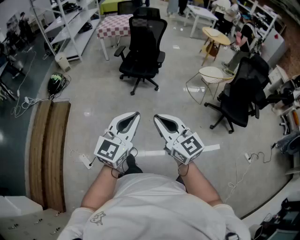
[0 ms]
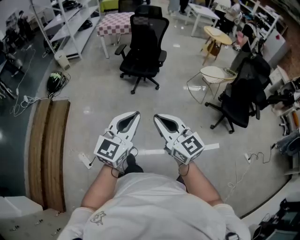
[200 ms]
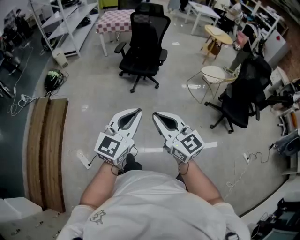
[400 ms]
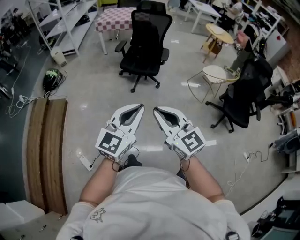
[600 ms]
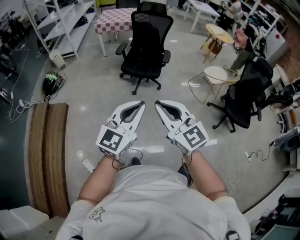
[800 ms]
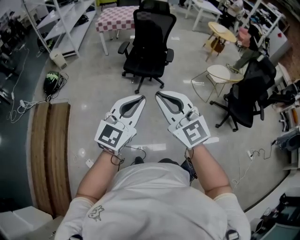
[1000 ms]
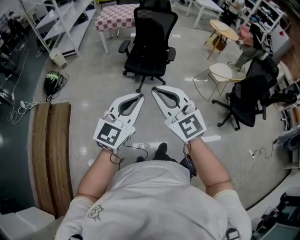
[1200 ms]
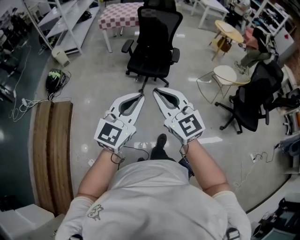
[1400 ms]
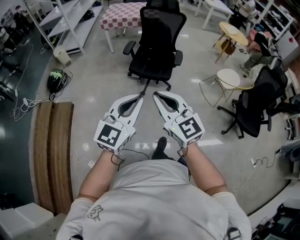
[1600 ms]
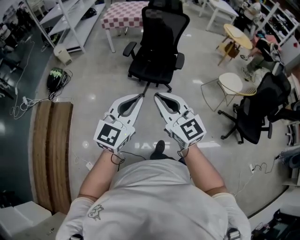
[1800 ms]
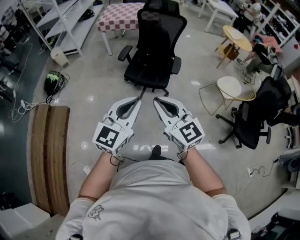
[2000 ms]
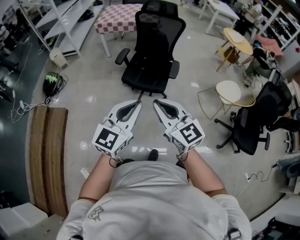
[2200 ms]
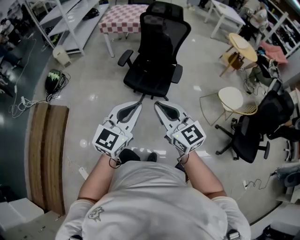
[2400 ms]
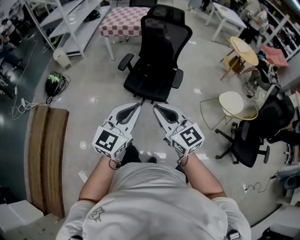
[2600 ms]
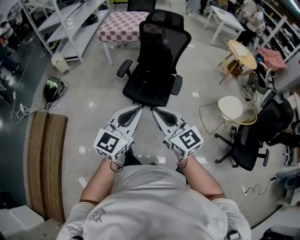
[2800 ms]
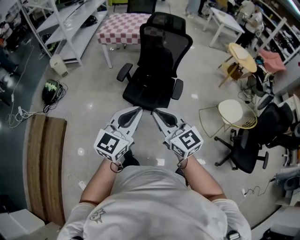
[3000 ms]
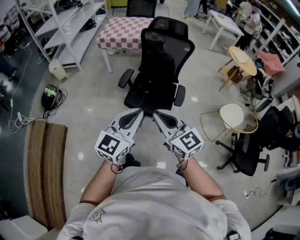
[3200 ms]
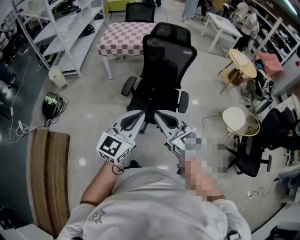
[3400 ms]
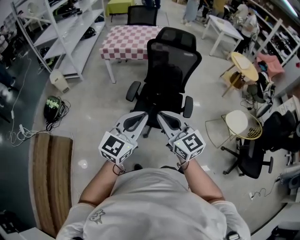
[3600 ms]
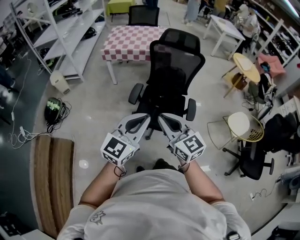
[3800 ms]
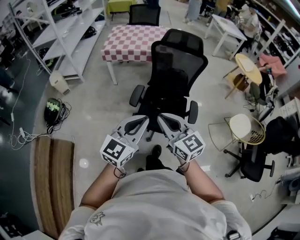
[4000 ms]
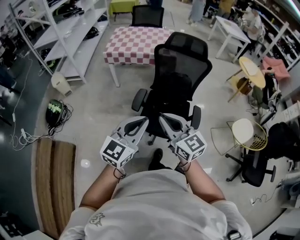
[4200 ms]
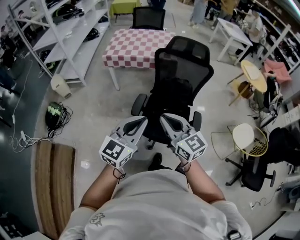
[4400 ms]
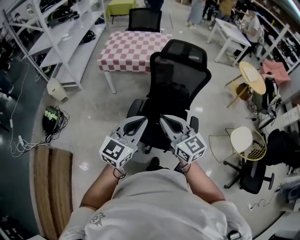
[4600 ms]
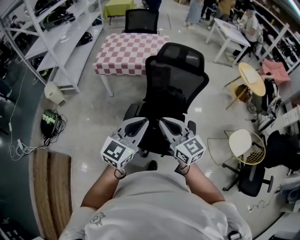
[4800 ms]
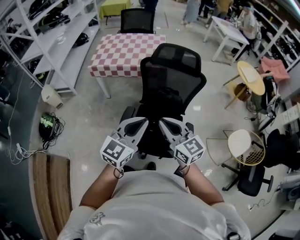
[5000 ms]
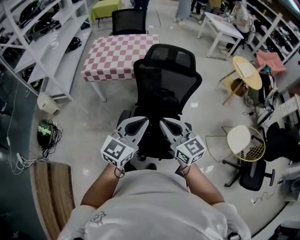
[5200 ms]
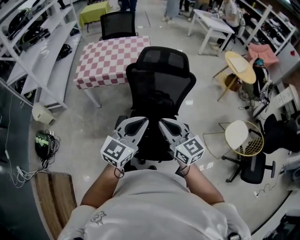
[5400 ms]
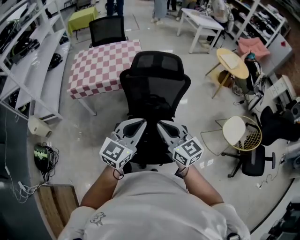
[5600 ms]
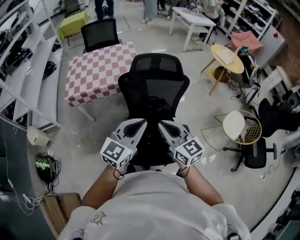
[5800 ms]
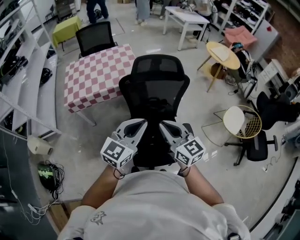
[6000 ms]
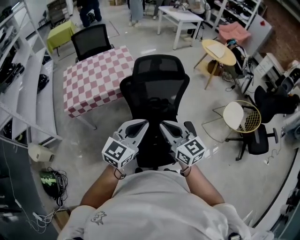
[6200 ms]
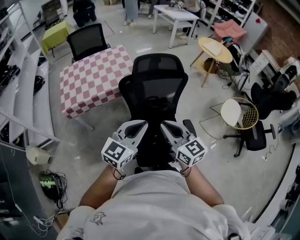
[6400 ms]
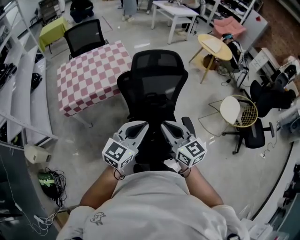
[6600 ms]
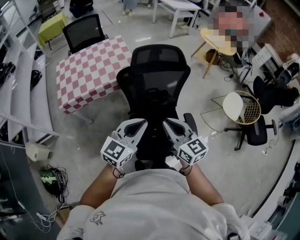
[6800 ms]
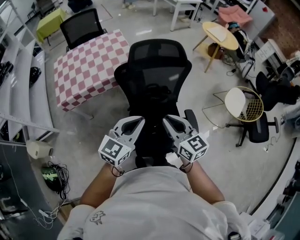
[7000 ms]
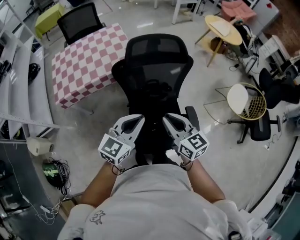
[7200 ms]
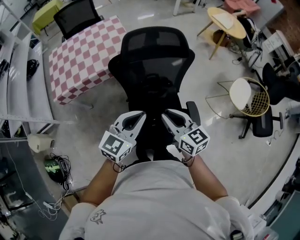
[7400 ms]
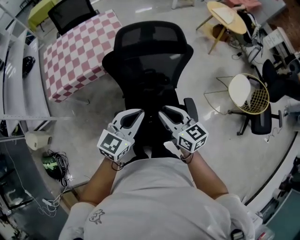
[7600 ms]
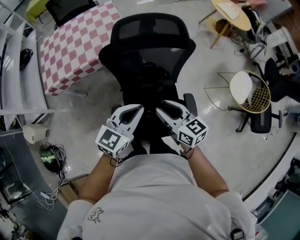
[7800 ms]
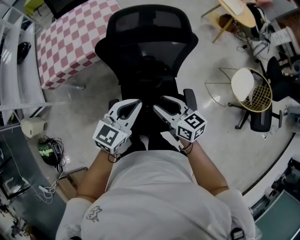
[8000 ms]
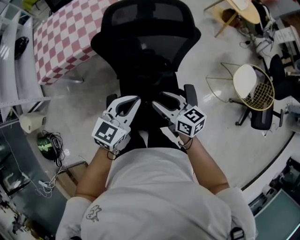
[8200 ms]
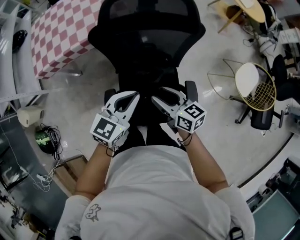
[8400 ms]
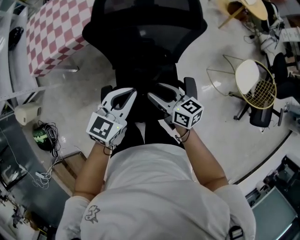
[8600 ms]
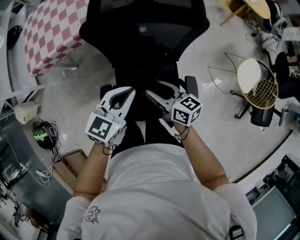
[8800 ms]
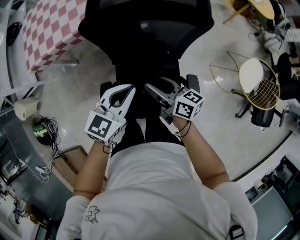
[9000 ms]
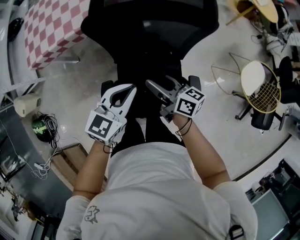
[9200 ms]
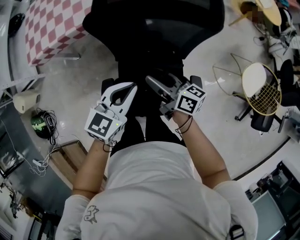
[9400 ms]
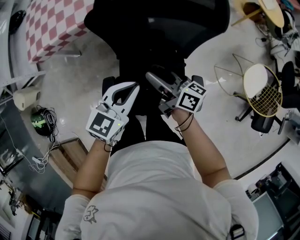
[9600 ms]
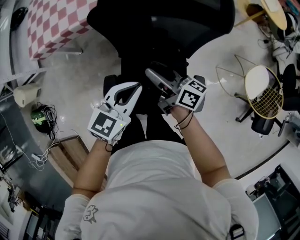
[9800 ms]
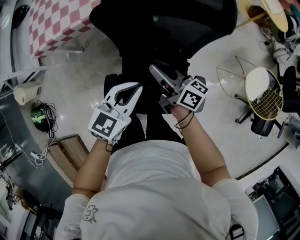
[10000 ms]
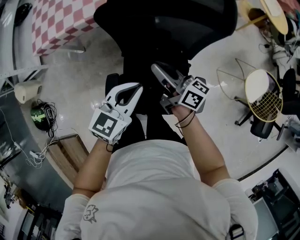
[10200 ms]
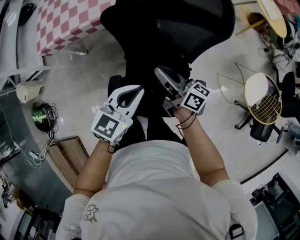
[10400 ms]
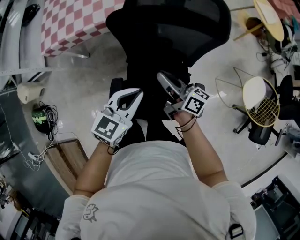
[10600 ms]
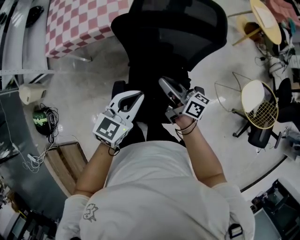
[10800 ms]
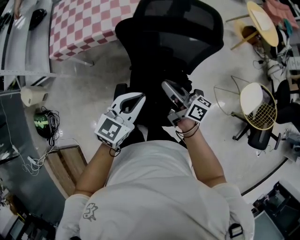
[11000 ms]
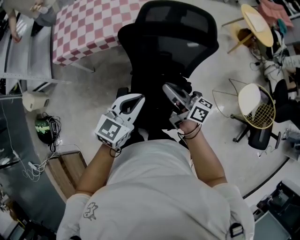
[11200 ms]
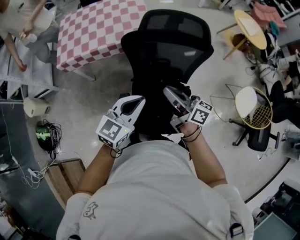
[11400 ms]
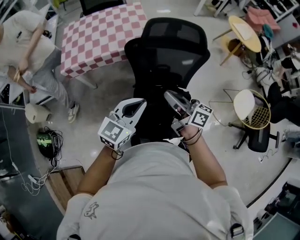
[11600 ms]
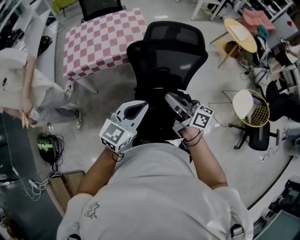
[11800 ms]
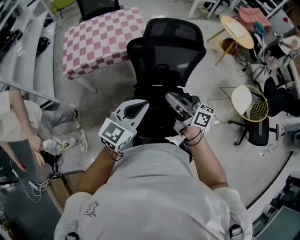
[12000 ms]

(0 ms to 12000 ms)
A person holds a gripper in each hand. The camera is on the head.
0 ms - 1600 ms: Both grippers move forward, approximately 30 cm.
1600 ms - 3000 ms: Both grippers move forward, roughly 30 cm.
3000 ms - 4400 ms: Both grippers move forward and to the left, roughly 35 cm.
4400 ms - 6000 ms: Both grippers travel together forward, some 25 cm. The right gripper rotates roughly 20 degrees. Meanwhile the left gripper turns by some 30 degrees.
6000 ms - 7600 ms: The grippers both shift downward and forward by some 15 cm.
7600 ms - 9000 ms: Both grippers travel together downward and forward, some 15 cm. The right gripper rotates approximately 30 degrees, and opens.
9000 ms - 10400 ms: The right gripper ends up approximately 5 cm from where it was, and closes its fingers.
10400 ms - 12000 ms: The right gripper travels backward and upward by roughly 25 cm. The left gripper is displaced upward, backward and to the left by approximately 25 cm.

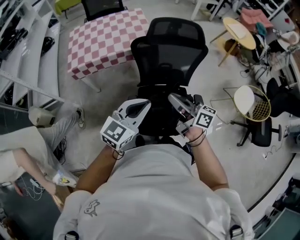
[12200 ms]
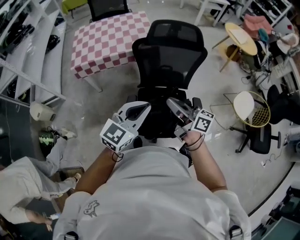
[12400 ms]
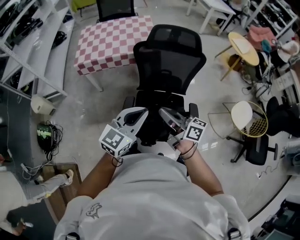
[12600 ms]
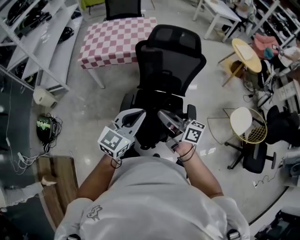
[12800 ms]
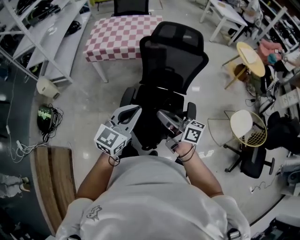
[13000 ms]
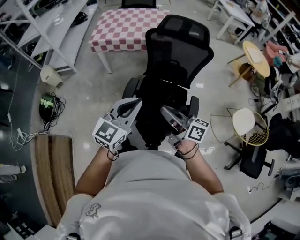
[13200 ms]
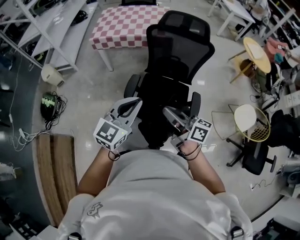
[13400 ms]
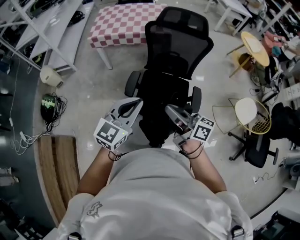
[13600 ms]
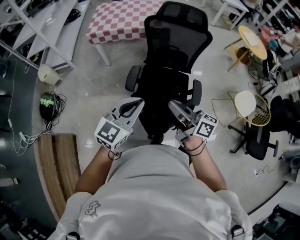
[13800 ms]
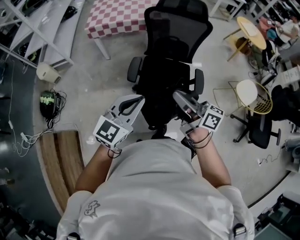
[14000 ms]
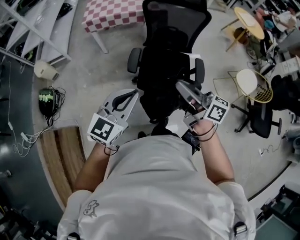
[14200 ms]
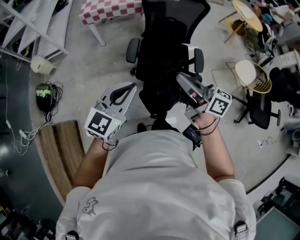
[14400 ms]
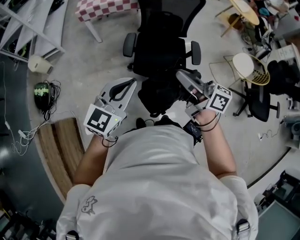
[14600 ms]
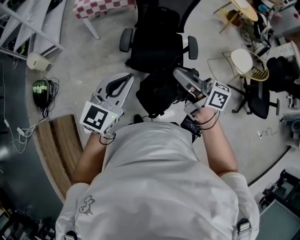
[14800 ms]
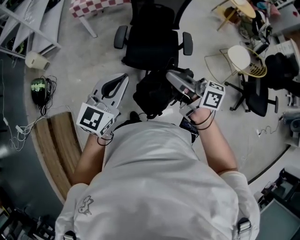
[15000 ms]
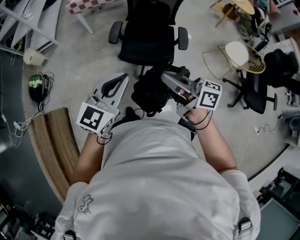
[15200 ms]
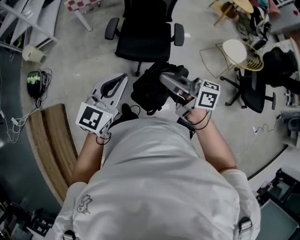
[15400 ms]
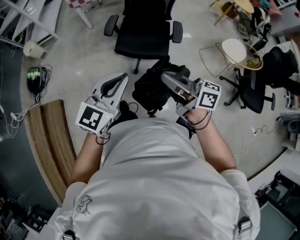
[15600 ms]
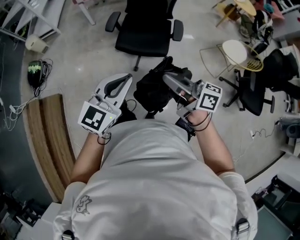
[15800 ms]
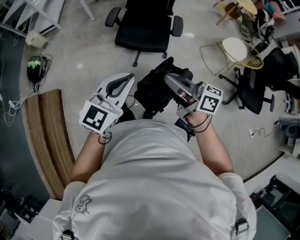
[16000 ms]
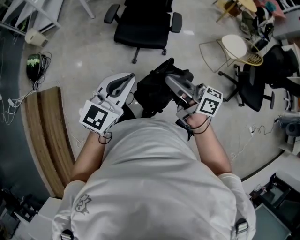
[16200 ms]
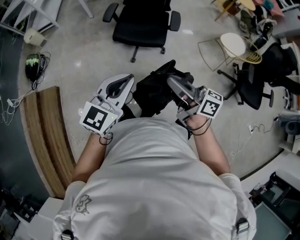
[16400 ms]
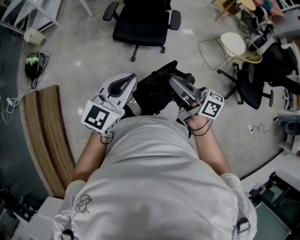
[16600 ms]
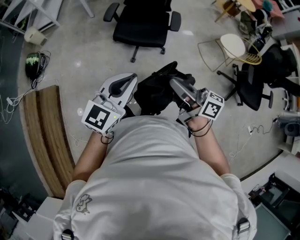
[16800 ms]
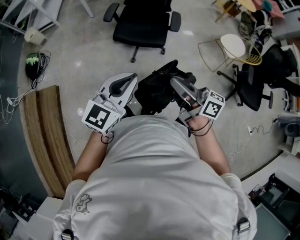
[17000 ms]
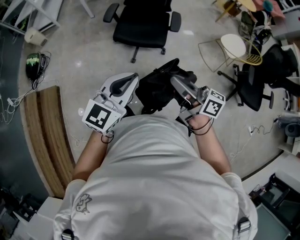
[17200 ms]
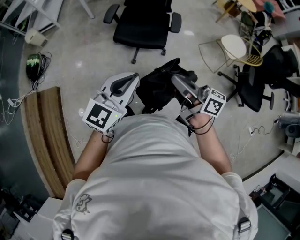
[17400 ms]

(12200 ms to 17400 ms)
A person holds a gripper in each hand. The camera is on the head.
12200 ms - 14000 ms: The grippers both shift backward by roughly 30 cm.
14000 ms - 15600 ms: The two grippers go approximately 25 cm backward.
15600 ms - 17400 ms: The grippers both shift backward and to the right by roughly 10 cm.

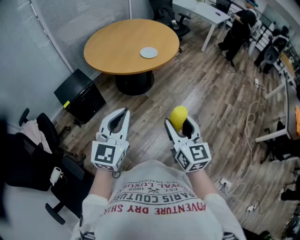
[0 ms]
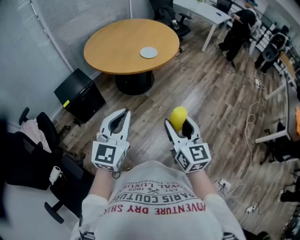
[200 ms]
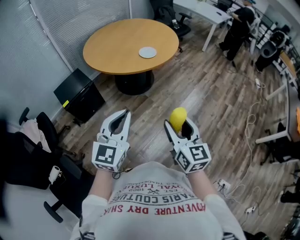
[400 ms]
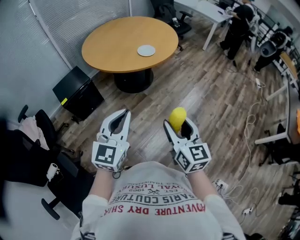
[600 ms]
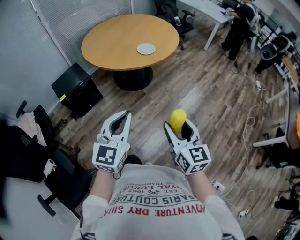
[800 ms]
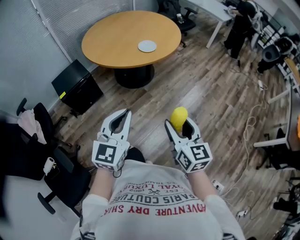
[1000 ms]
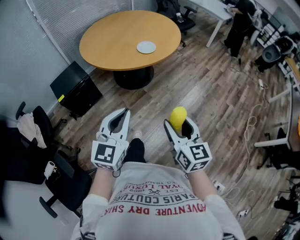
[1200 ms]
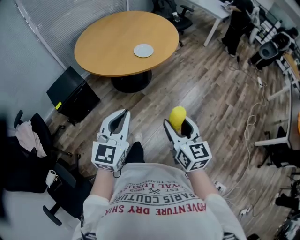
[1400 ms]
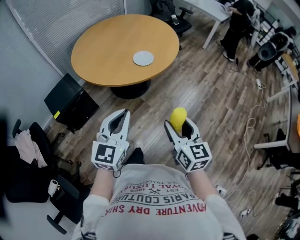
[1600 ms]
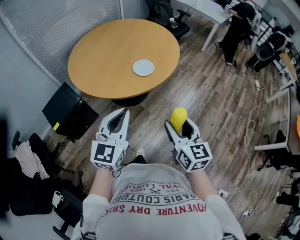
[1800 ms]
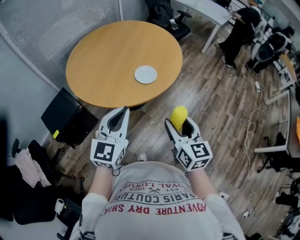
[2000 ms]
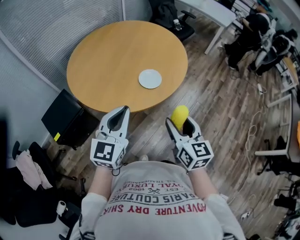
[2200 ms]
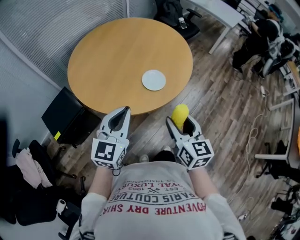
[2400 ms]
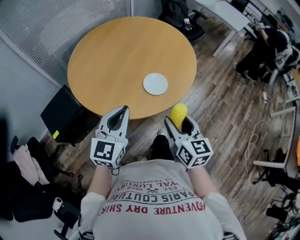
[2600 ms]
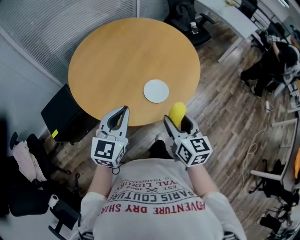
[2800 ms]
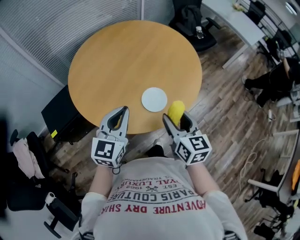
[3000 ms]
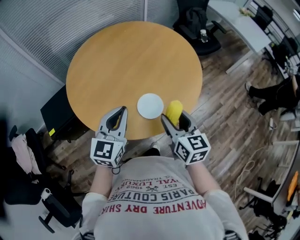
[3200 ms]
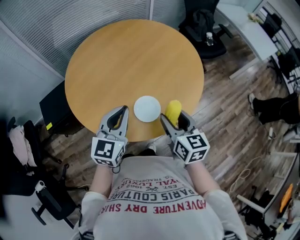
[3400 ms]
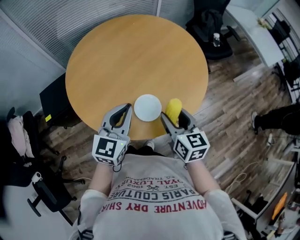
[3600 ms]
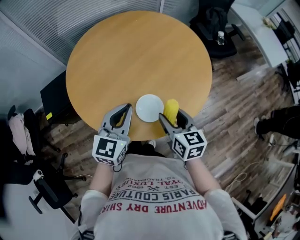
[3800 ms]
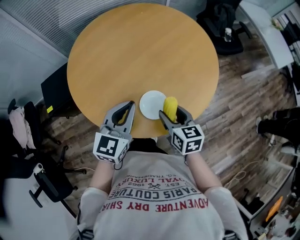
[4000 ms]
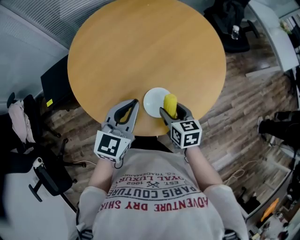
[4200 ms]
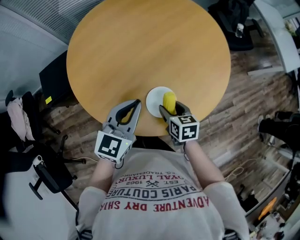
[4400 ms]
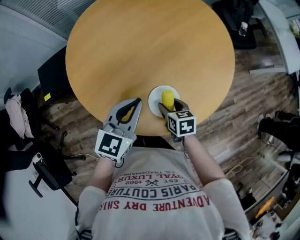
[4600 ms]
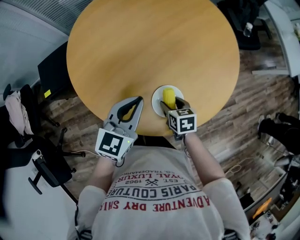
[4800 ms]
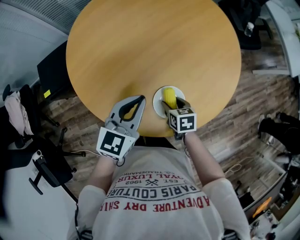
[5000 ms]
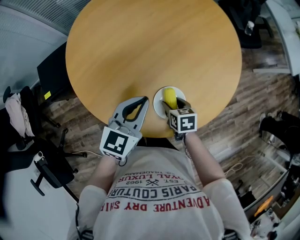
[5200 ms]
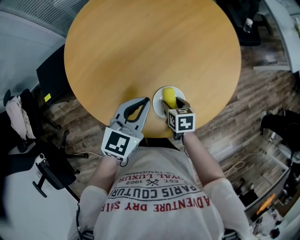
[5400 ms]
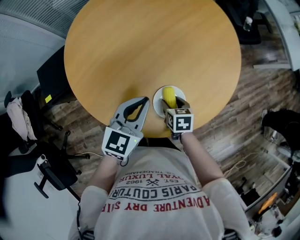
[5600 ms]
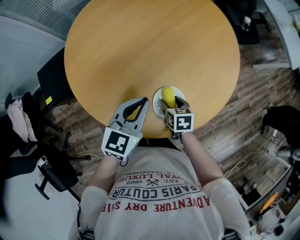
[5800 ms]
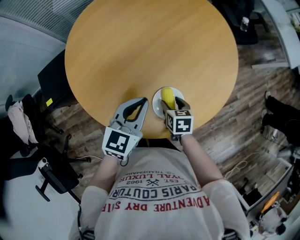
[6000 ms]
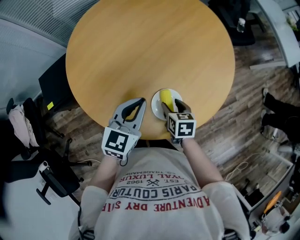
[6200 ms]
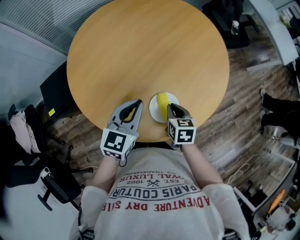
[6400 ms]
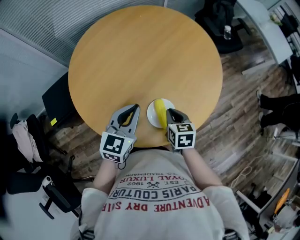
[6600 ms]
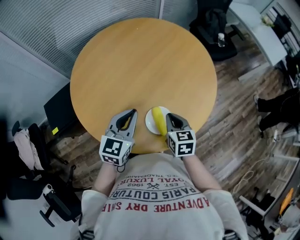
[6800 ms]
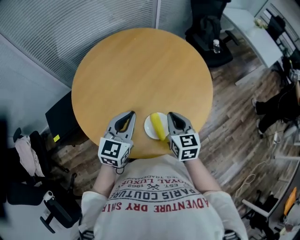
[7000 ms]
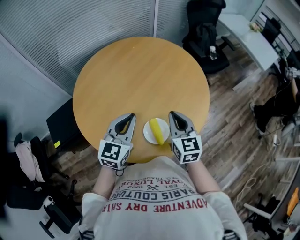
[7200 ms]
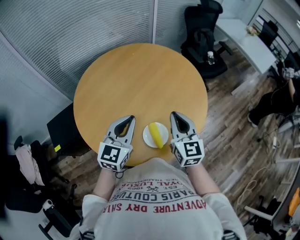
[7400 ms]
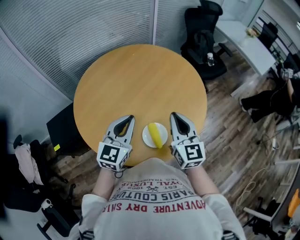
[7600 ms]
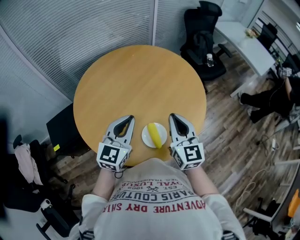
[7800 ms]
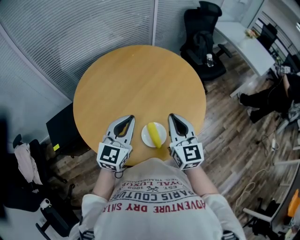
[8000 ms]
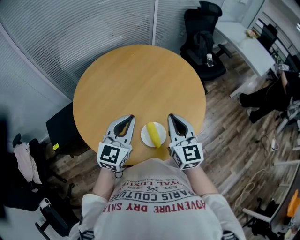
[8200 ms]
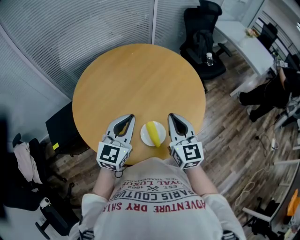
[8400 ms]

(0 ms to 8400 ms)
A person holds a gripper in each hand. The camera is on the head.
0 ms - 1400 ms: The right gripper moves forward, some 10 cm, while the left gripper moves forward and to the right, approximately 10 cm.
1400 ms - 2800 ms: Both grippers move forward, about 40 cm.
2800 ms - 4200 ms: The left gripper is displaced forward, to the right and downward by approximately 15 cm. The right gripper travels forward and downward by about 25 cm, and swivels approximately 30 degrees.
4200 ms - 5600 ms: The right gripper goes roughly 10 cm downward, while the left gripper is displaced downward by about 5 cm.
5600 ms - 7000 ms: The right gripper shifts some 20 cm upward, angles its fingers upward, by approximately 30 degrees, and closes its fingers, while the left gripper moves upward, approximately 10 cm.
7000 ms - 8400 ms: The right gripper shifts approximately 10 cm upward, and turns by some 20 degrees, while the left gripper goes approximately 5 cm upward.
